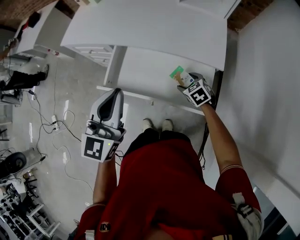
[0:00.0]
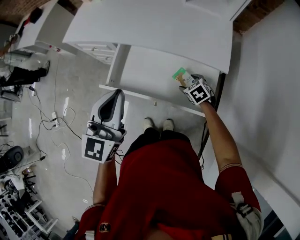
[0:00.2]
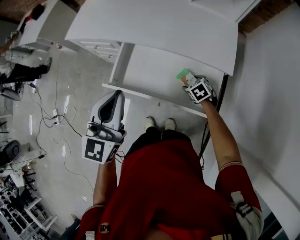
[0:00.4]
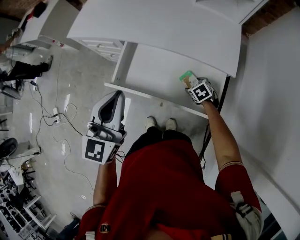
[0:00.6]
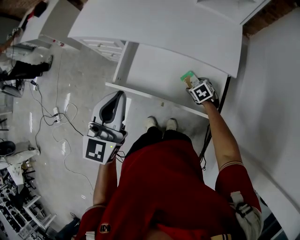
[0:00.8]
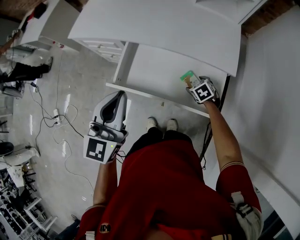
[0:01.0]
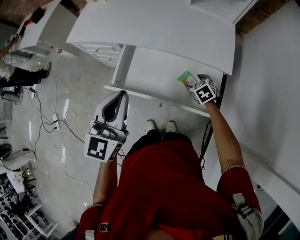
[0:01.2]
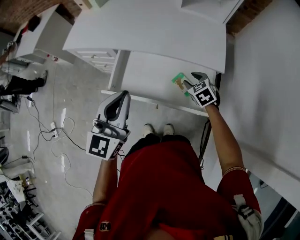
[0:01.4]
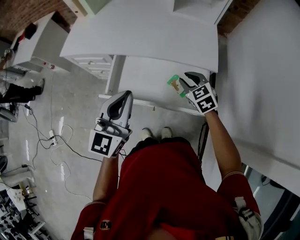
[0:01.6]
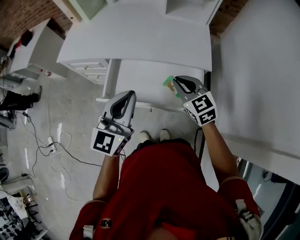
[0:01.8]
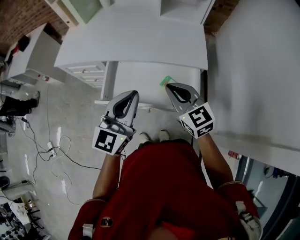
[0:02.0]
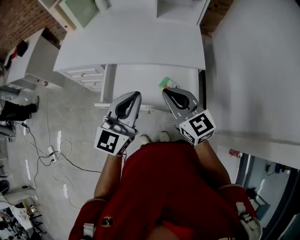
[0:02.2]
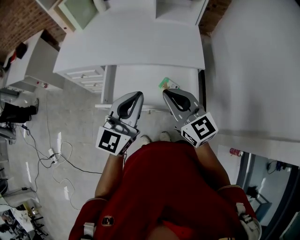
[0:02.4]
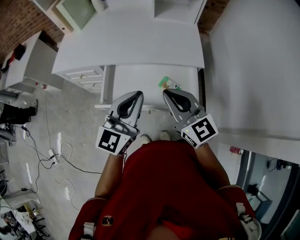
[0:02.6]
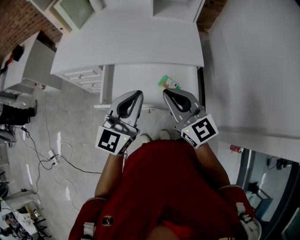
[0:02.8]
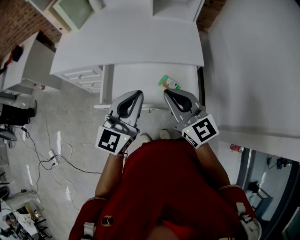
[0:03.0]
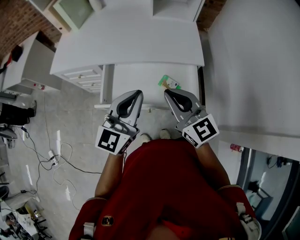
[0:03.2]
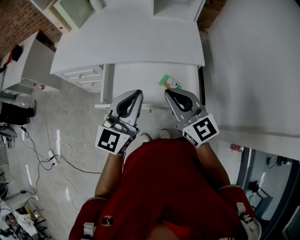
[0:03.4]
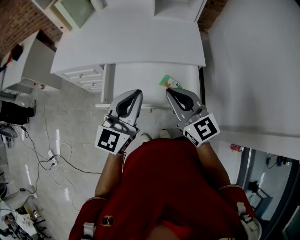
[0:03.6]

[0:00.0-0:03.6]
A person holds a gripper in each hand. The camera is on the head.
0:00.0 to 0:01.8: The right gripper travels upward by approximately 20 cm, turns by about 30 degrees, and closes.
0:01.8 to 0:03.6: The right gripper heads upward and backward, covering about 10 cm, and swivels about 20 degrees.

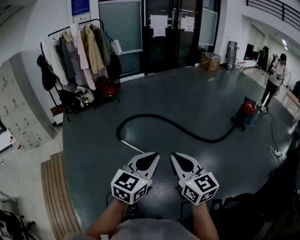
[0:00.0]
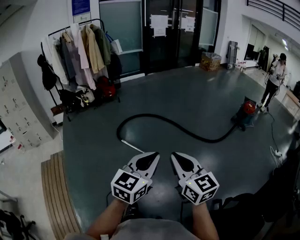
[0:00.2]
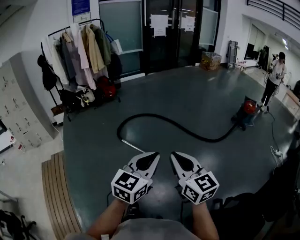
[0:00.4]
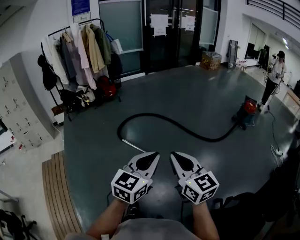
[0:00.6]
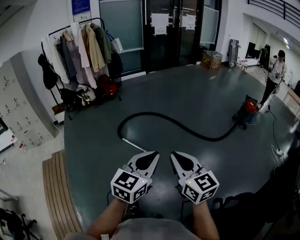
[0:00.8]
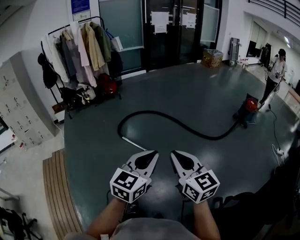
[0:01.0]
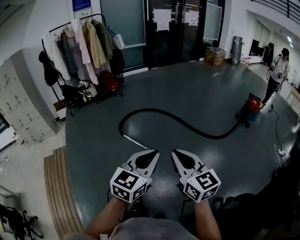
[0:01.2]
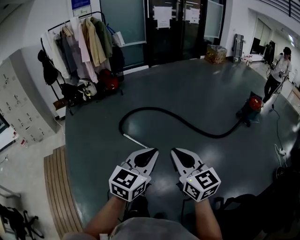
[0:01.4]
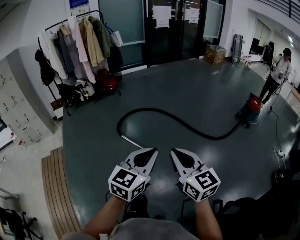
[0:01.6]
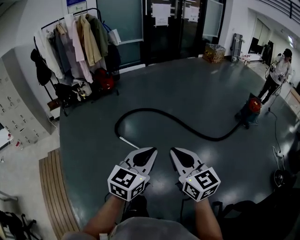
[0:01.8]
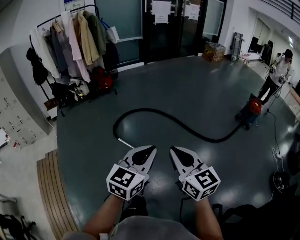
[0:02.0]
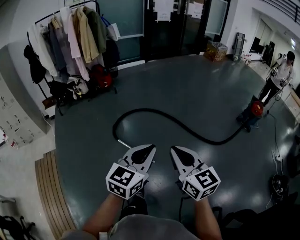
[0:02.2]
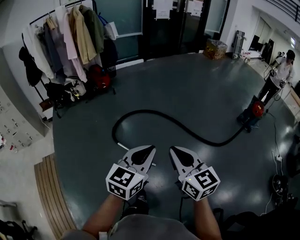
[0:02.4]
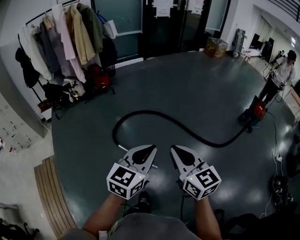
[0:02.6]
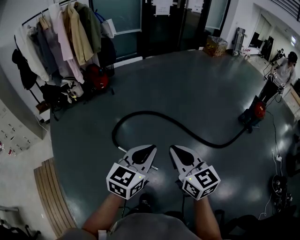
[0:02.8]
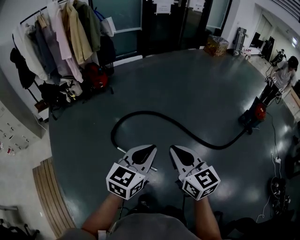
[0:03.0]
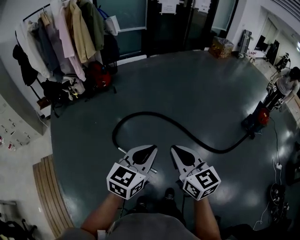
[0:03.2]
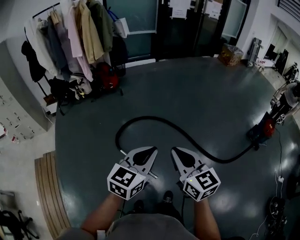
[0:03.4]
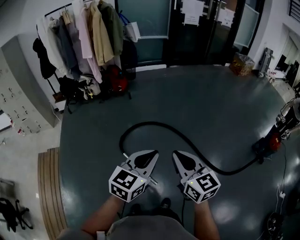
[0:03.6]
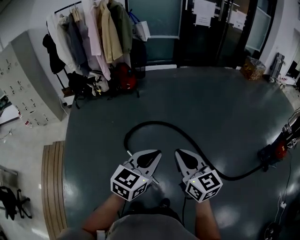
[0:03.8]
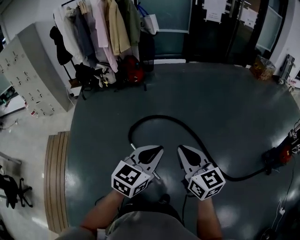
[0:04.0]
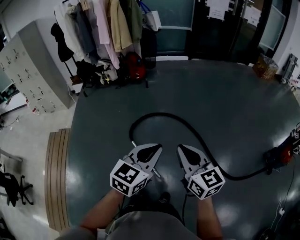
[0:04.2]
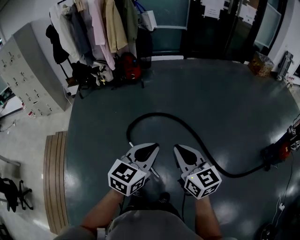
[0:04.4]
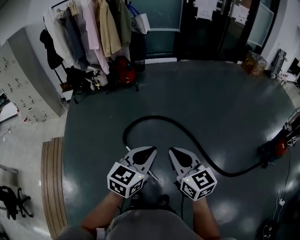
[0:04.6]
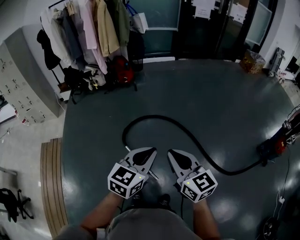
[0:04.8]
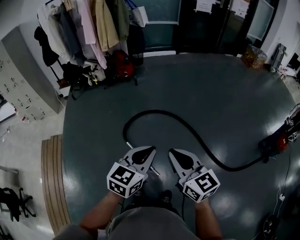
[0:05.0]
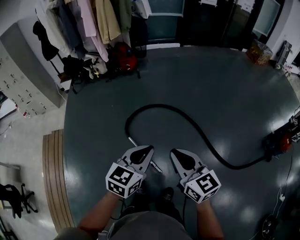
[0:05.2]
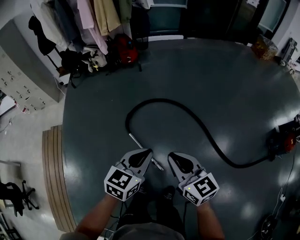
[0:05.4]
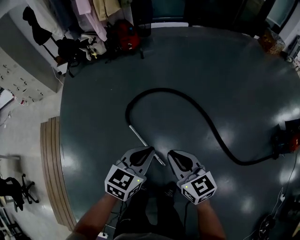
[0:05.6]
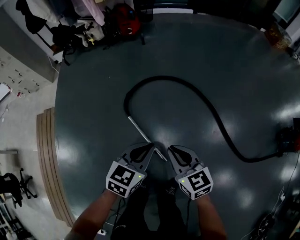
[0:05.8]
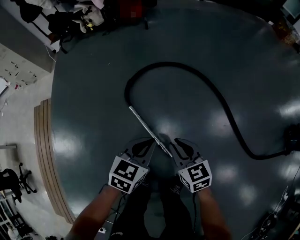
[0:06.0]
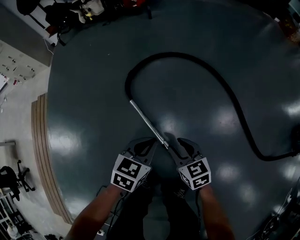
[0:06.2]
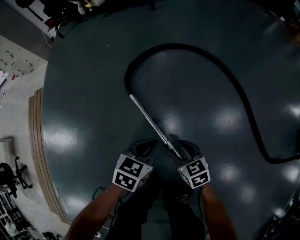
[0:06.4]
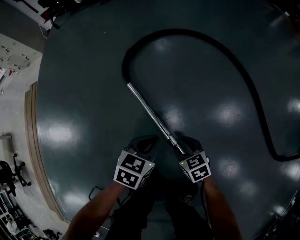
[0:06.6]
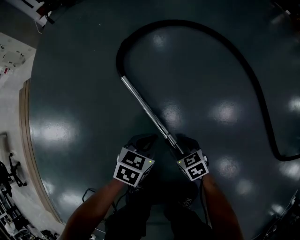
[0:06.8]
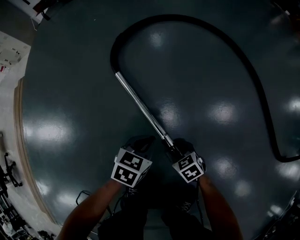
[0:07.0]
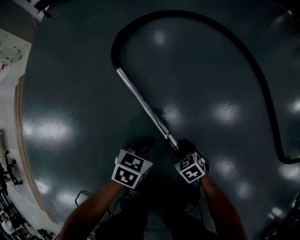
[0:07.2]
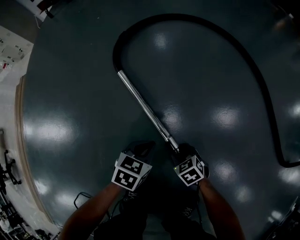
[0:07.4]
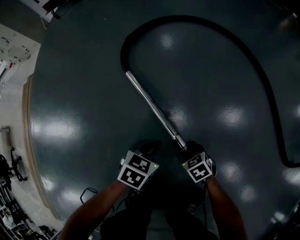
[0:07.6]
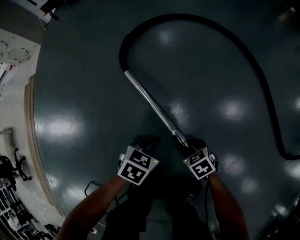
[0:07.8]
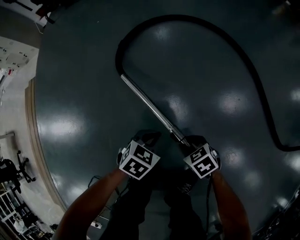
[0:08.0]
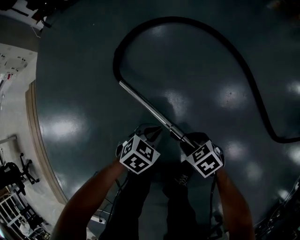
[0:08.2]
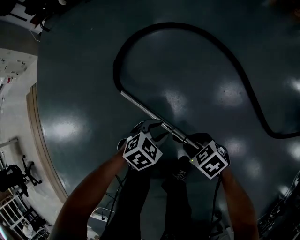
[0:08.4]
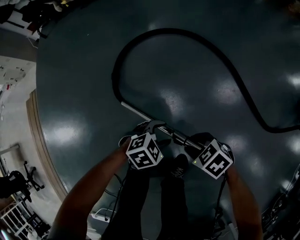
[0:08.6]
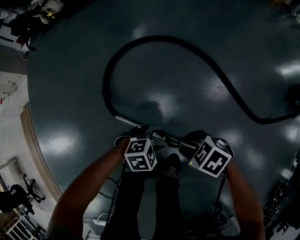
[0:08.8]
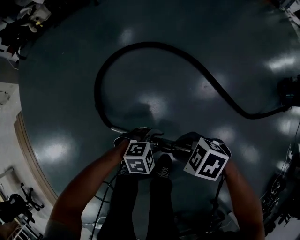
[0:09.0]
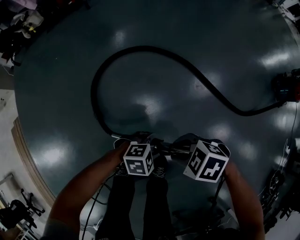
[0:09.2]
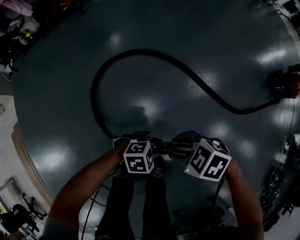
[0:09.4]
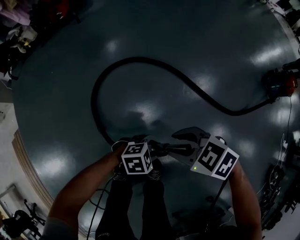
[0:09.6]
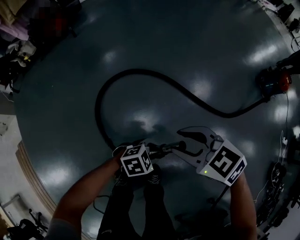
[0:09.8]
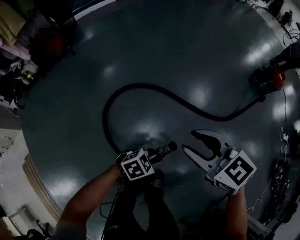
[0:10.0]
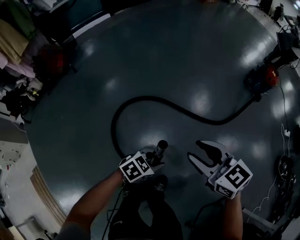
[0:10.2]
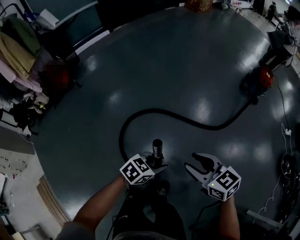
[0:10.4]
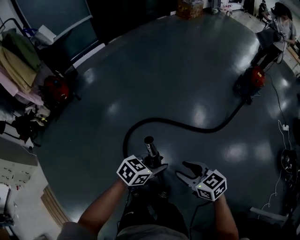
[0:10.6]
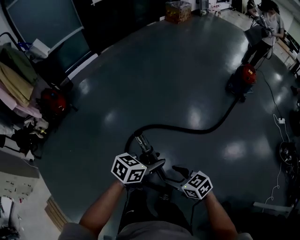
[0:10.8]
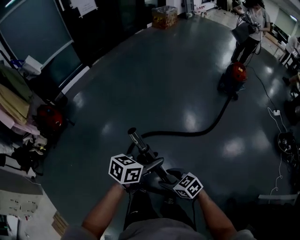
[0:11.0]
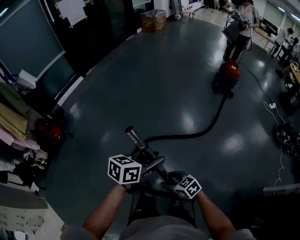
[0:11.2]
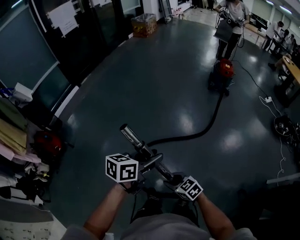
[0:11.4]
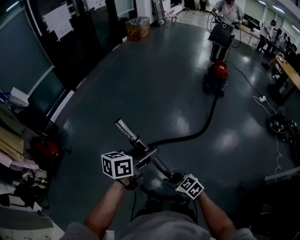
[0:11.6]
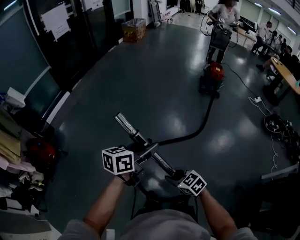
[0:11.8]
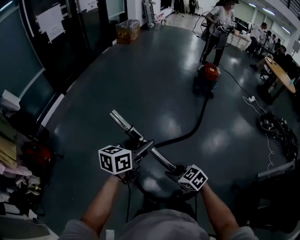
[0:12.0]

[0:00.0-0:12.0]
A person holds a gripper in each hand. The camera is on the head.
0:00.0 to 0:01.6: The two grippers go roughly 5 cm forward.
0:01.6 to 0:03.0: The grippers both shift forward by some 35 cm.
0:03.0 to 0:04.4: Both grippers move forward and to the right, some 15 cm.
0:04.4 to 0:06.0: The two grippers go approximately 50 cm downward. The right gripper rotates about 30 degrees. Meanwhile the left gripper swivels roughly 20 degrees.
0:06.0 to 0:07.6: The two grippers go some 50 cm downward. The right gripper tilts its fingers some 30 degrees downward, and opens.
0:07.6 to 0:09.0: The right gripper travels upward by about 40 cm. Meanwhile the left gripper shifts about 25 cm upward, twists about 60 degrees clockwise, seen from behind, and opens its fingers.
0:09.0 to 0:10.4: Both grippers travel together upward, about 35 cm. The right gripper angles its fingers upward, by about 30 degrees, while the left gripper rotates approximately 20 degrees.
0:10.4 to 0:12.0: The left gripper goes roughly 25 cm upward, and swivels roughly 20 degrees, while the right gripper goes downward and returns, some 5 cm each way, swivels about 20 degrees, and opens and closes again.

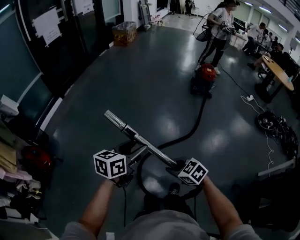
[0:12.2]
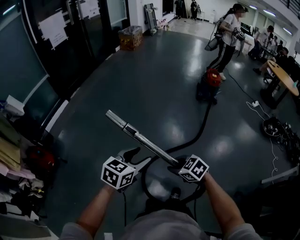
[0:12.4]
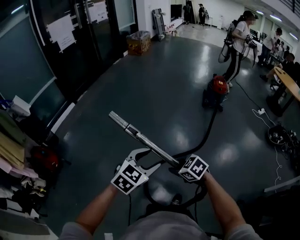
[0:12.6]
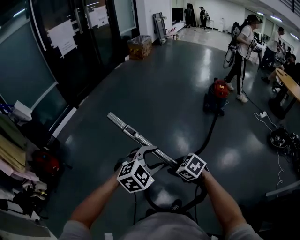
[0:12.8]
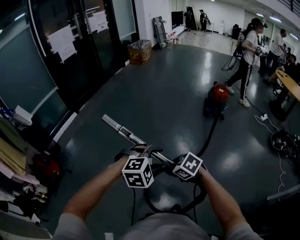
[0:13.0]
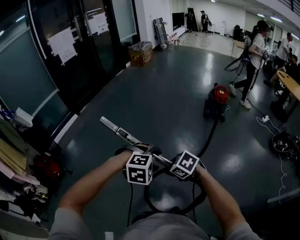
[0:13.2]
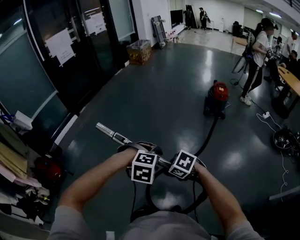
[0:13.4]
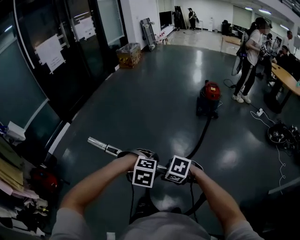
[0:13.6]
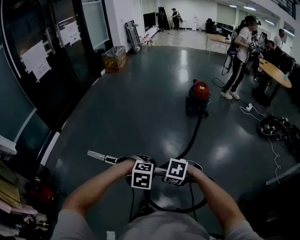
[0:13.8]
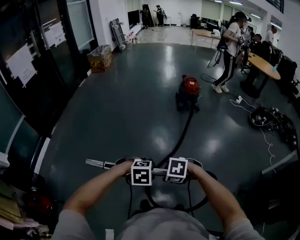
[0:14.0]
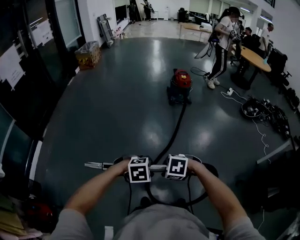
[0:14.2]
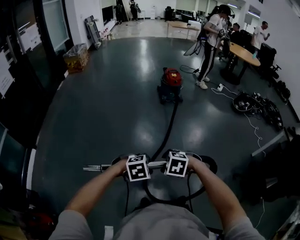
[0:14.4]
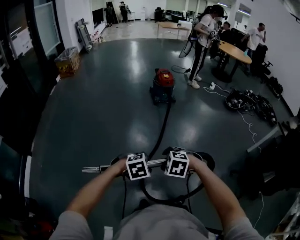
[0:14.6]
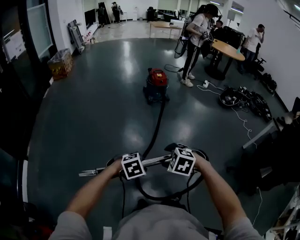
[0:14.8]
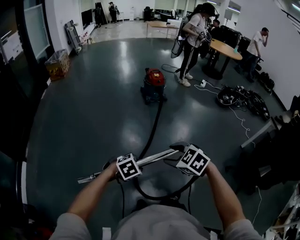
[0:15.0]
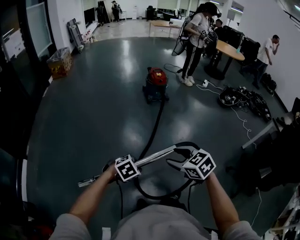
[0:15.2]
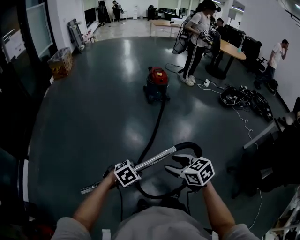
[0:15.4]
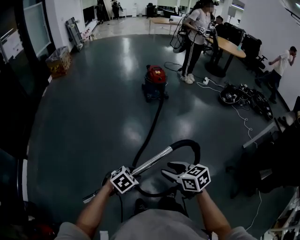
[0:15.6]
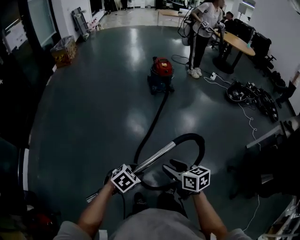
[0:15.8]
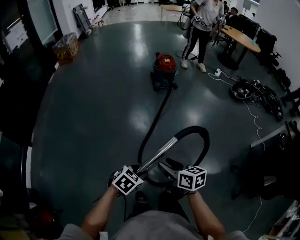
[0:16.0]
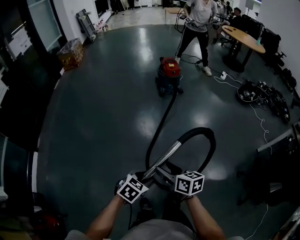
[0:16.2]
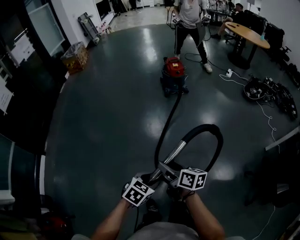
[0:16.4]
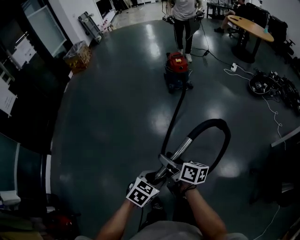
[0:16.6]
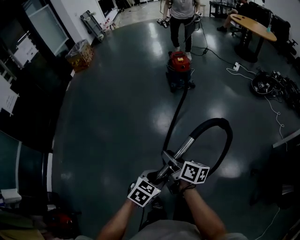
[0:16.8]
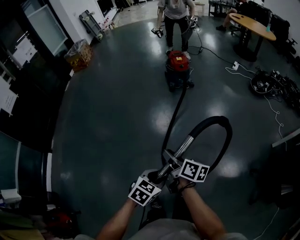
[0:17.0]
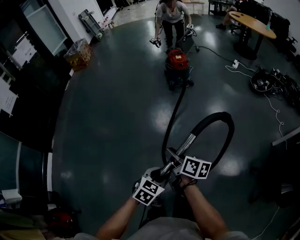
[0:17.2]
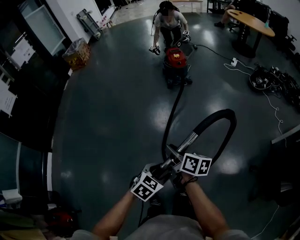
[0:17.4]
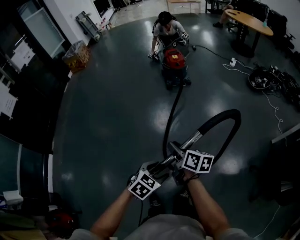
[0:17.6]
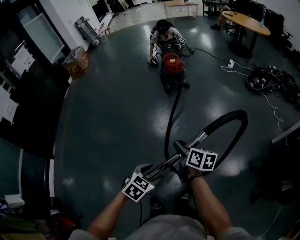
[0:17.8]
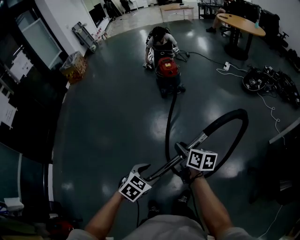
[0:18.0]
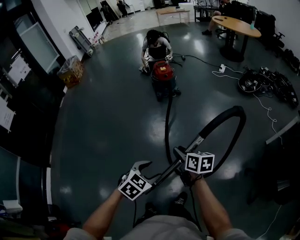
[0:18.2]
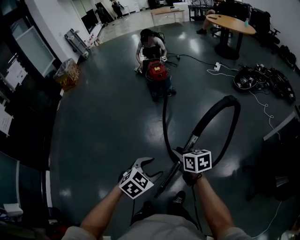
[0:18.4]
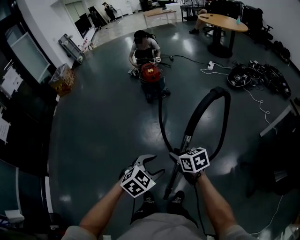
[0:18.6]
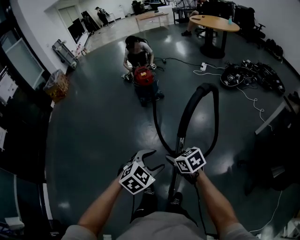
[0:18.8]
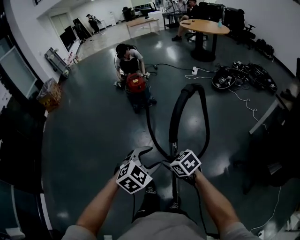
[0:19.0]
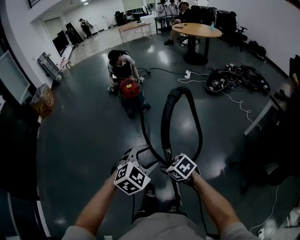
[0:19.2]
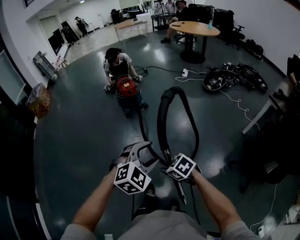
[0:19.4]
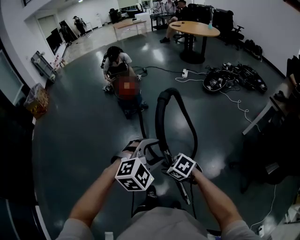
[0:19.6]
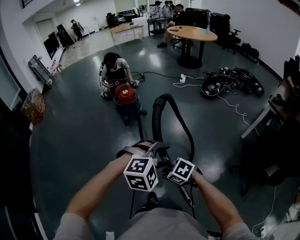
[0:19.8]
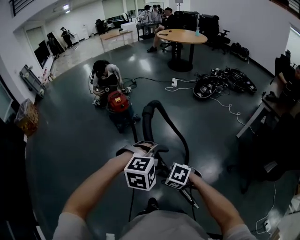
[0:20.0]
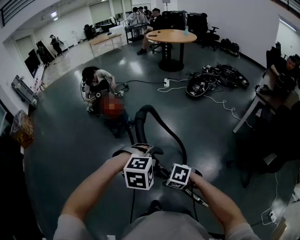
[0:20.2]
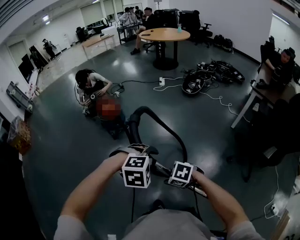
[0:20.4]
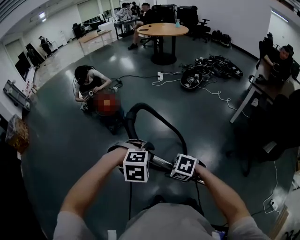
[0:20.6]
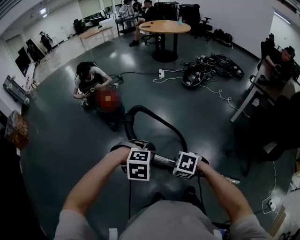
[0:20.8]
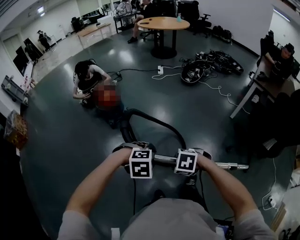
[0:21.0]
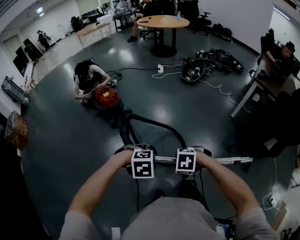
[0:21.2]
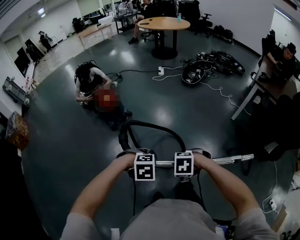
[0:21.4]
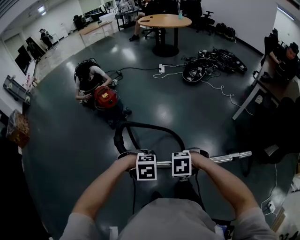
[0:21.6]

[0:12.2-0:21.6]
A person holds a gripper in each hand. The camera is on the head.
0:12.2 to 0:13.8: The right gripper moves roughly 15 cm, and swivels about 20 degrees. Meanwhile the left gripper ends up some 20 cm from where it was, and tilts its fingers about 60 degrees downward.
0:13.8 to 0:15.4: The left gripper changes place by approximately 10 cm, and rotates about 30 degrees; the right gripper travels upward by about 5 cm, rotates about 70 degrees, and opens up.
0:15.4 to 0:17.0: The right gripper shifts roughly 15 cm forward, twists about 50 degrees clockwise, seen from behind, and closes. Meanwhile the left gripper travels to the right and forward by about 15 cm, and turns by roughly 30 degrees.
0:17.0 to 0:18.4: The right gripper heads to the right, covering about 20 cm, and changes its angle by roughly 30 degrees. Meanwhile the left gripper travels to the right and upward by about 15 cm, changes its angle by some 20 degrees, and opens up.
0:18.4 to 0:20.0: The left gripper ends up approximately 20 cm from where it was, and twists roughly 60 degrees clockwise, seen from behind, while the right gripper changes place by roughly 5 cm, and changes its angle by about 50 degrees.
0:20.0 to 0:21.6: The left gripper heads downward, covering some 15 cm, and rotates about 30 degrees. Meanwhile the right gripper shifts by some 5 cm, and rotates approximately 20 degrees.
